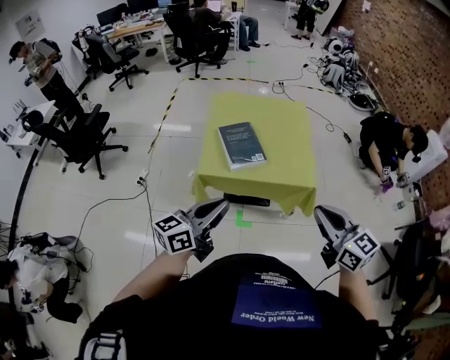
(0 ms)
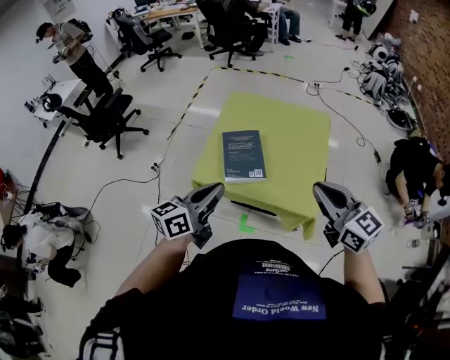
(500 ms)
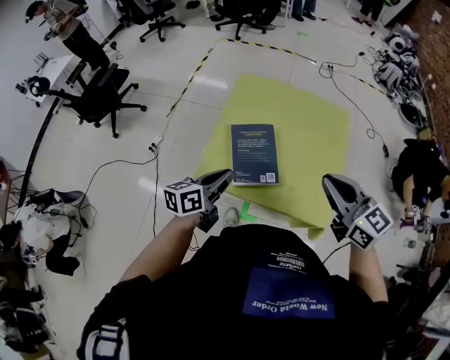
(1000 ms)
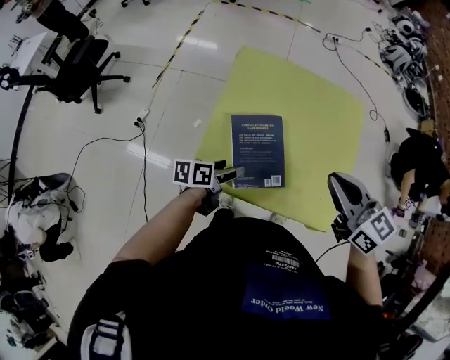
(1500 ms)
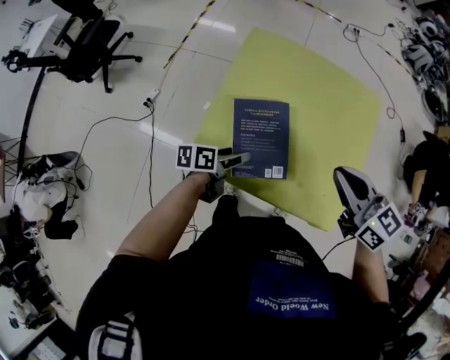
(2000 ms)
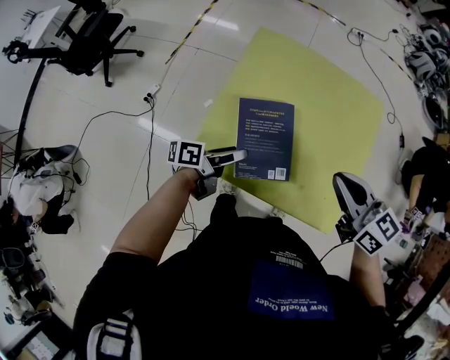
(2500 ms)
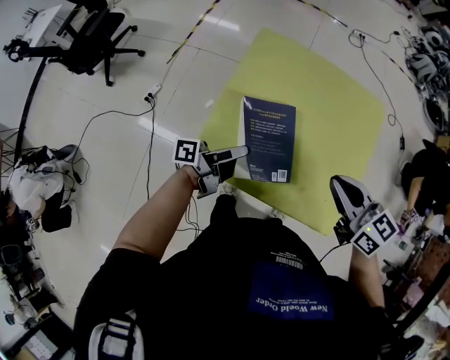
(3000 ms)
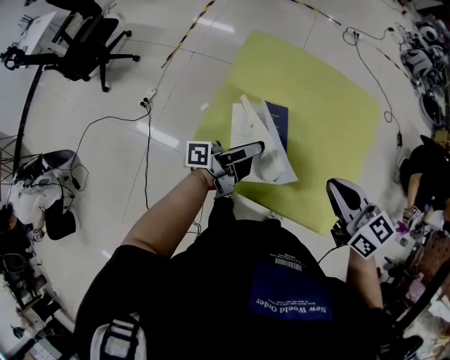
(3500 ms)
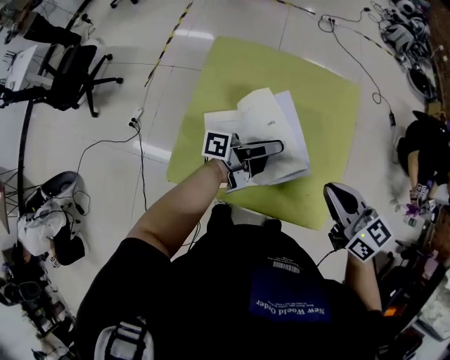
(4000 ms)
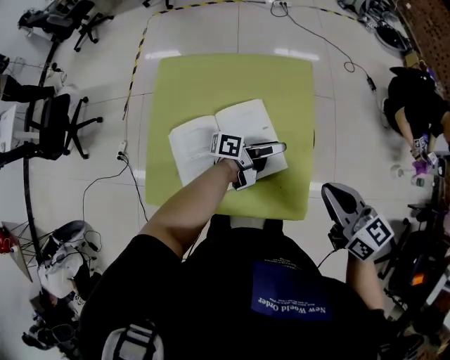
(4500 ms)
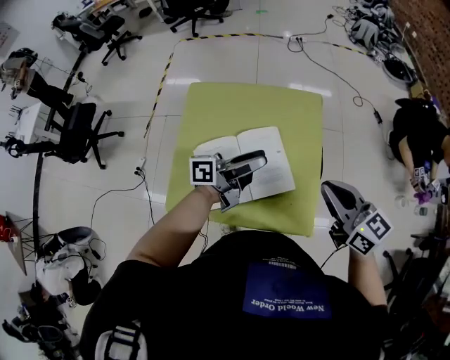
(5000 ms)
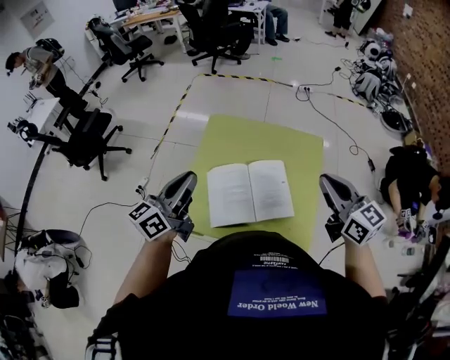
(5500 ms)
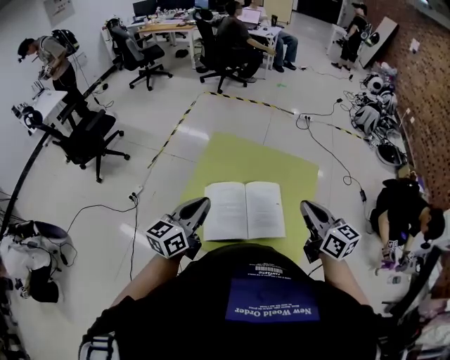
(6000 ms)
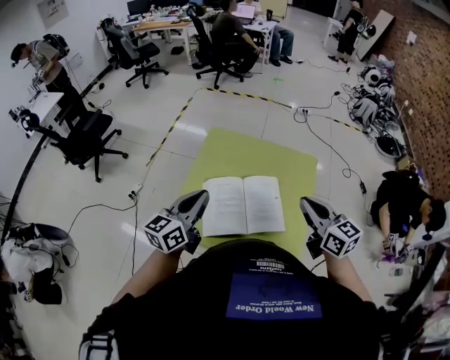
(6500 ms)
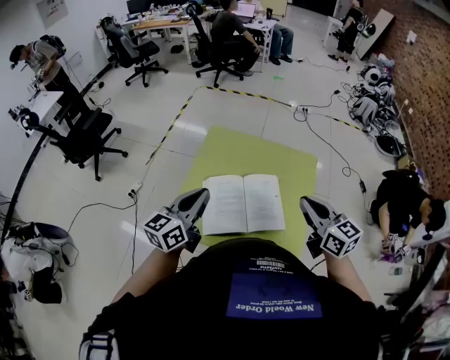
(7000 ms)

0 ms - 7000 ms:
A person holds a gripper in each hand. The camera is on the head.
0 ms - 2000 ms: The right gripper moves forward, approximately 40 cm, and rotates approximately 30 degrees. The left gripper travels forward and downward by approximately 40 cm, tilts its fingers about 30 degrees downward, and opens.
2000 ms - 3500 ms: The left gripper is displaced upward by roughly 10 cm, and tips its fingers upward by roughly 50 degrees.
3500 ms - 5000 ms: The left gripper heads to the right and upward, covering roughly 20 cm, and changes its angle by approximately 20 degrees, while the right gripper goes some 15 cm to the right.
5000 ms - 7000 ms: The right gripper travels to the left by about 5 cm; the left gripper moves to the left and upward, approximately 20 cm, changes its angle by about 60 degrees, and closes up.

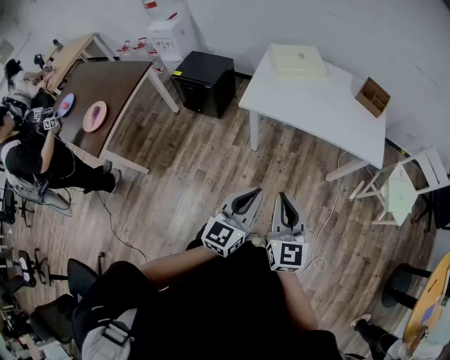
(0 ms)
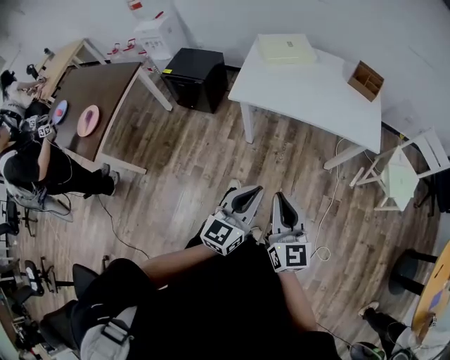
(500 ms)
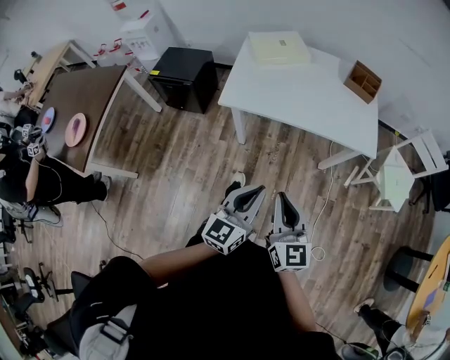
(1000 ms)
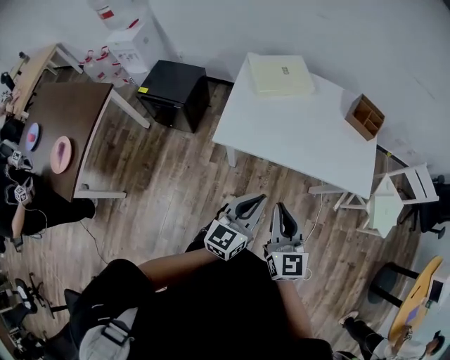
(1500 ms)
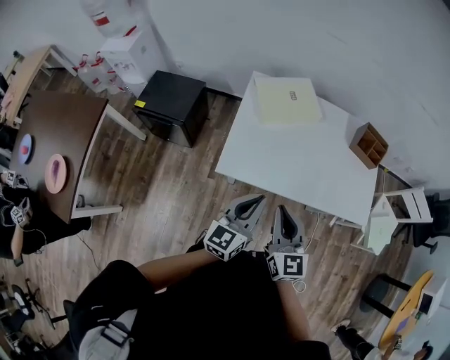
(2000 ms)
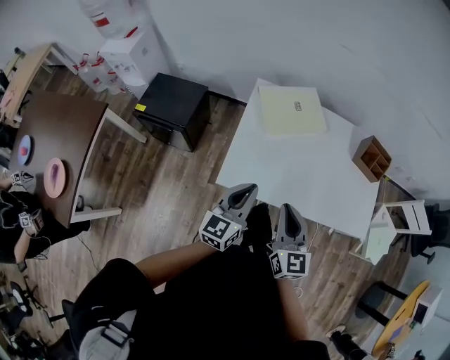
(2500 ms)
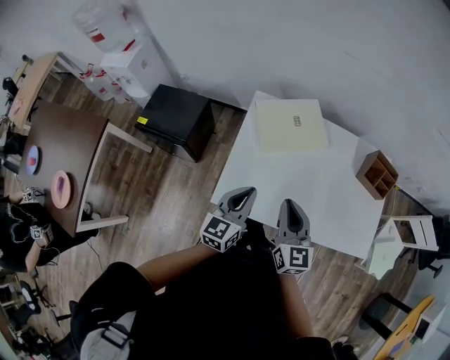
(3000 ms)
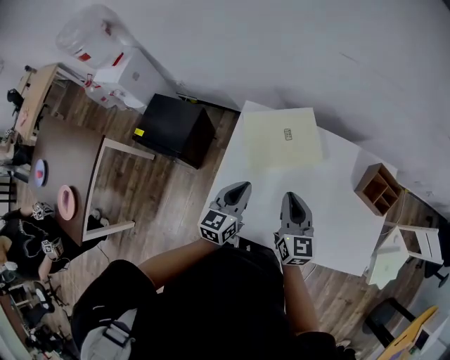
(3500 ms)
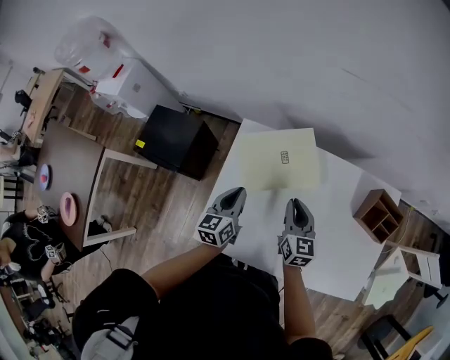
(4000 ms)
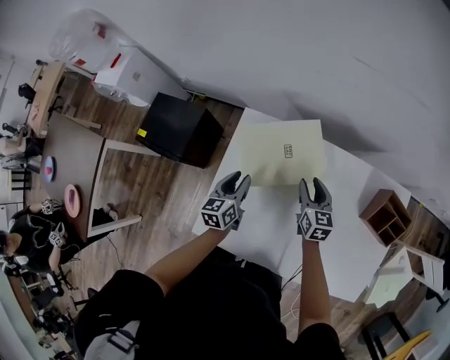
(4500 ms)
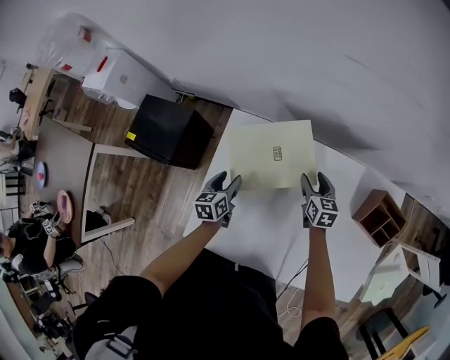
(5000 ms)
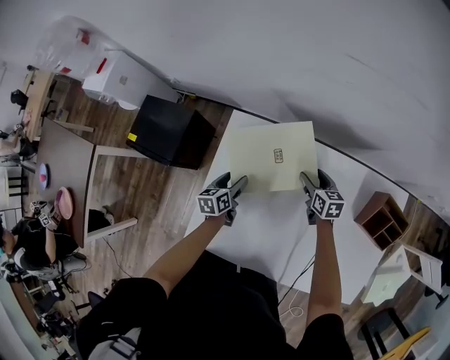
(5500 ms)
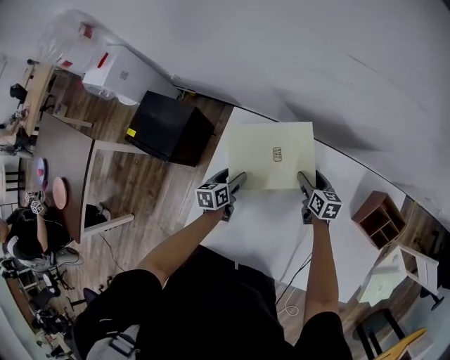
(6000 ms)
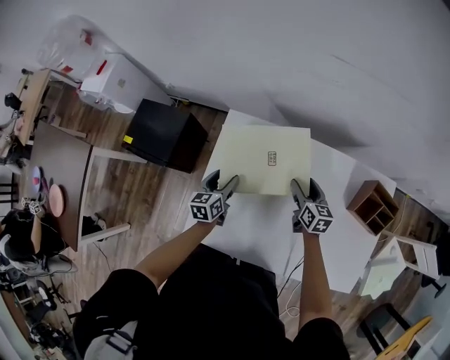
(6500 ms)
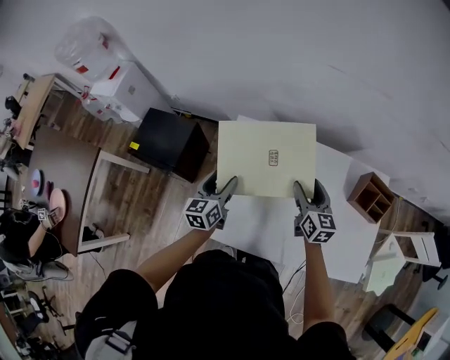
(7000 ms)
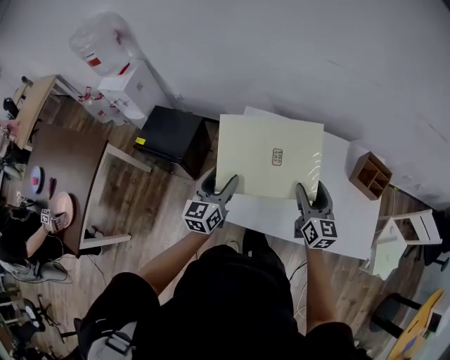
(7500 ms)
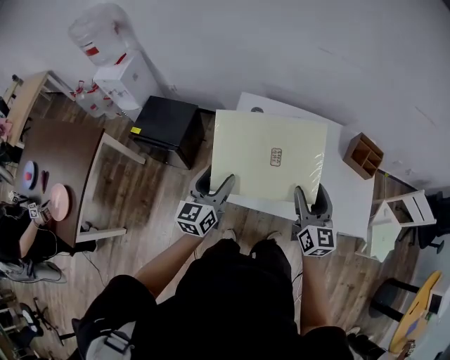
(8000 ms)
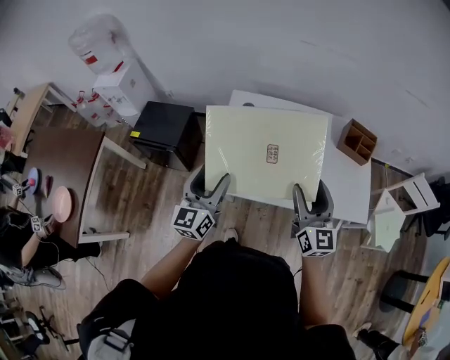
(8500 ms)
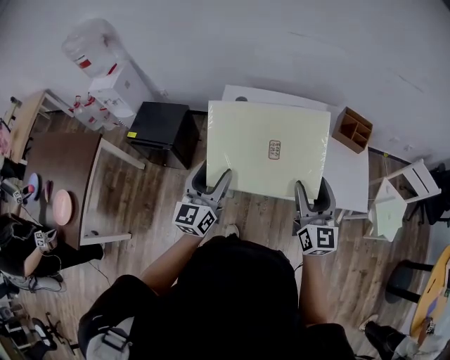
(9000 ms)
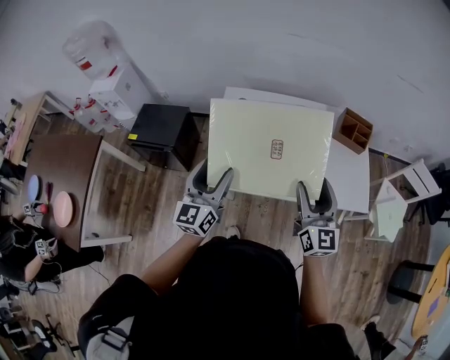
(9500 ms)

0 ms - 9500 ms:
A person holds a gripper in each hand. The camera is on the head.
0 ms - 2000 ms: The grippers both shift forward by approximately 35 cm.
2000 ms - 4000 ms: The two grippers go approximately 40 cm forward. The left gripper swivels about 30 degrees.
4000 ms - 5500 ms: The right gripper moves downward, forward and to the right, about 25 cm, changes its angle by some 20 degrees, and opens up, while the left gripper shifts approximately 15 cm downward, swivels approximately 20 degrees, and opens its fingers.
5500 ms - 7500 ms: The grippers both shift upward and backward by roughly 35 cm. The right gripper changes its angle by roughly 40 degrees, while the left gripper tips its fingers upward by approximately 30 degrees.
7500 ms - 9500 ms: The two grippers go some 20 cm backward and upward.

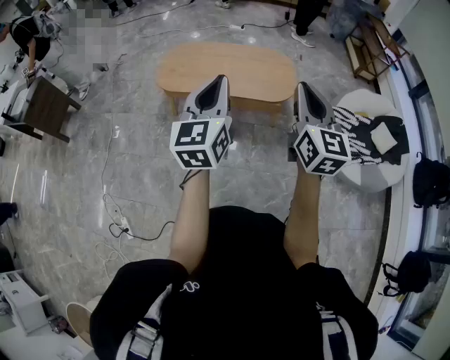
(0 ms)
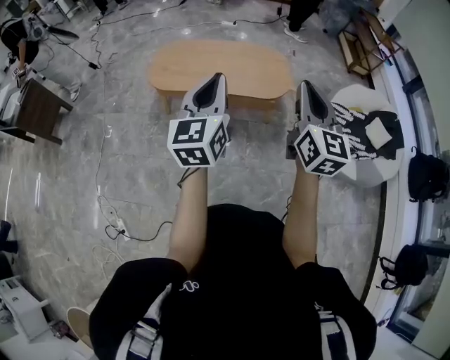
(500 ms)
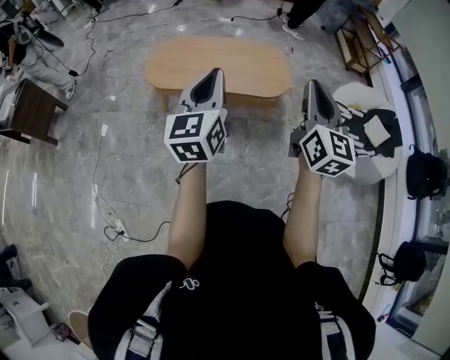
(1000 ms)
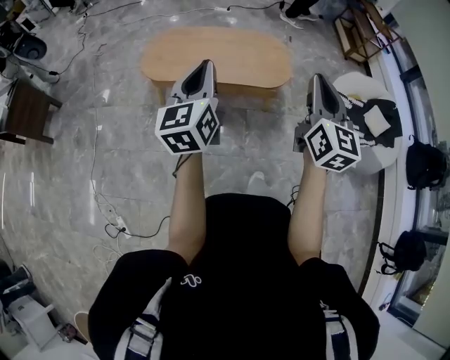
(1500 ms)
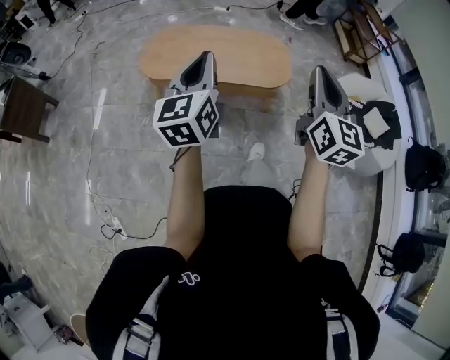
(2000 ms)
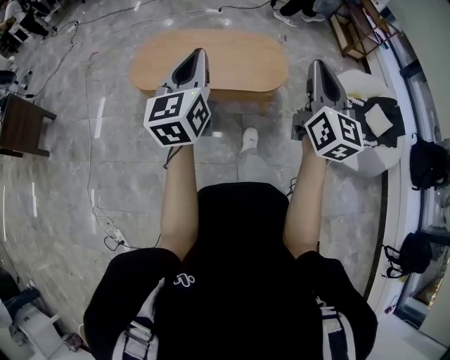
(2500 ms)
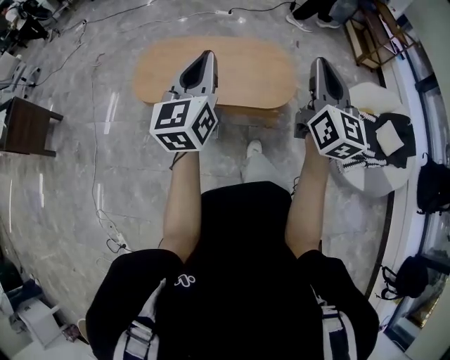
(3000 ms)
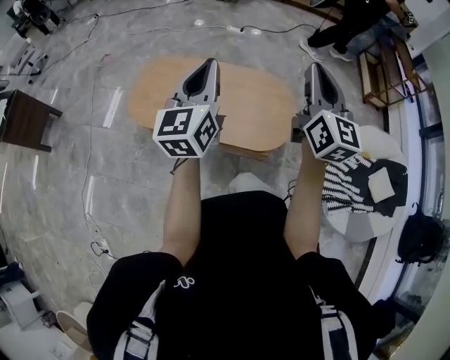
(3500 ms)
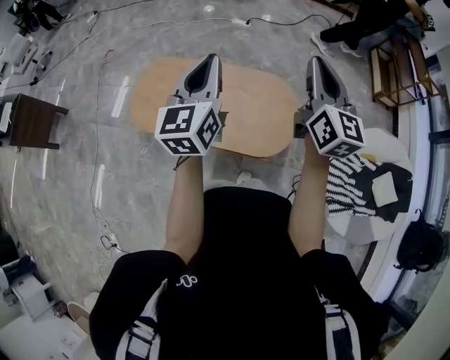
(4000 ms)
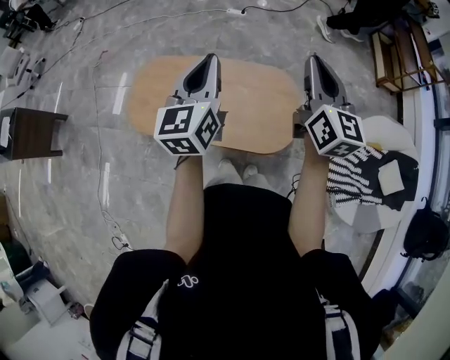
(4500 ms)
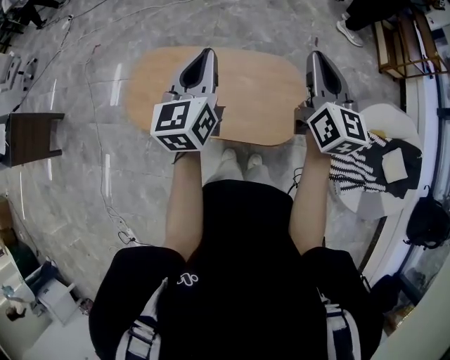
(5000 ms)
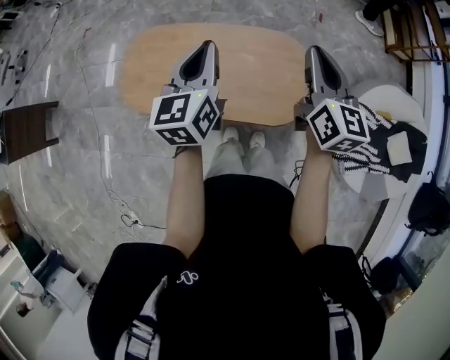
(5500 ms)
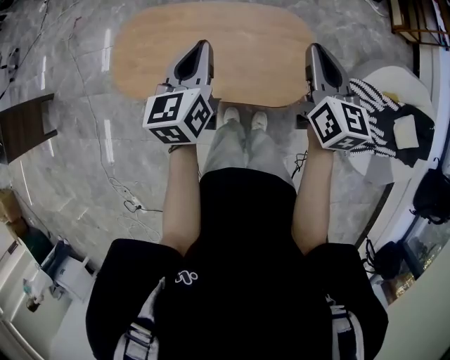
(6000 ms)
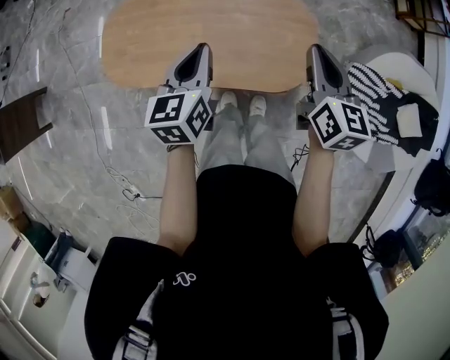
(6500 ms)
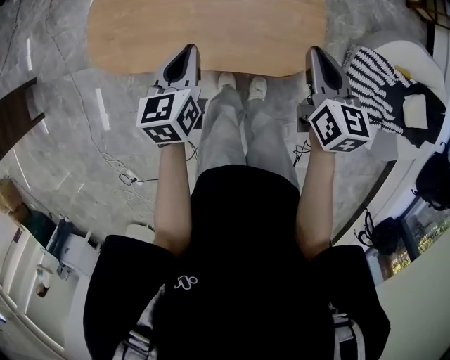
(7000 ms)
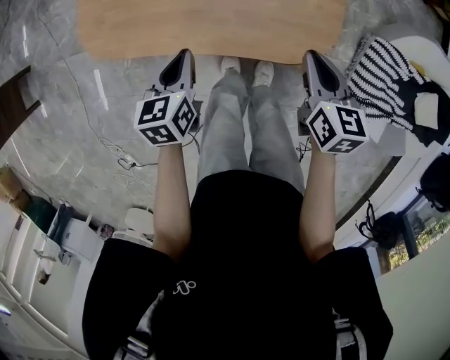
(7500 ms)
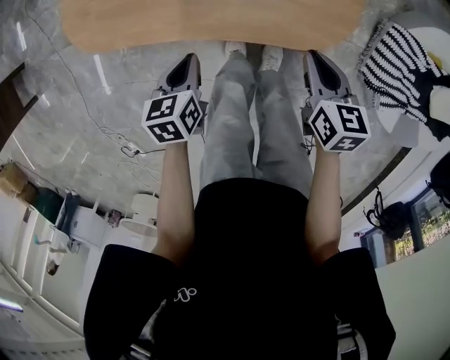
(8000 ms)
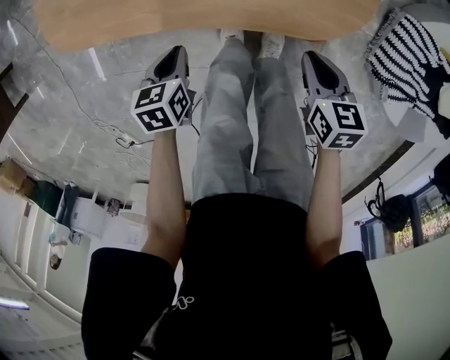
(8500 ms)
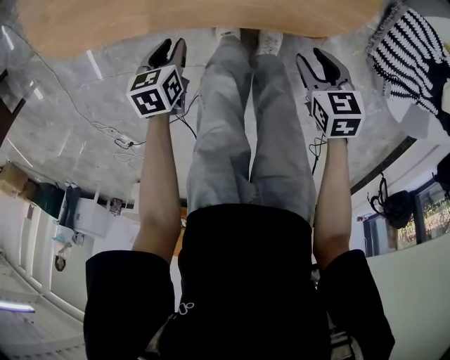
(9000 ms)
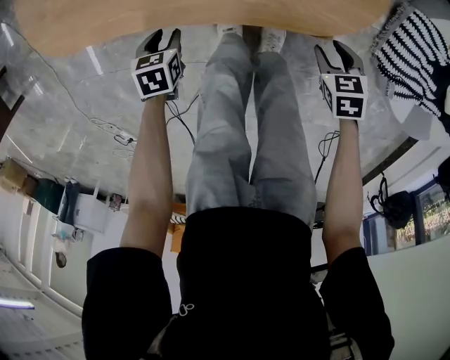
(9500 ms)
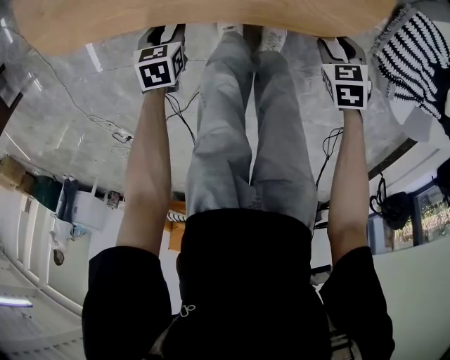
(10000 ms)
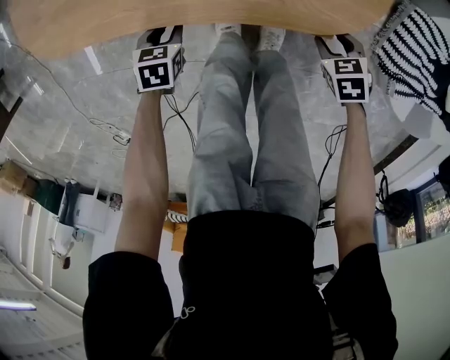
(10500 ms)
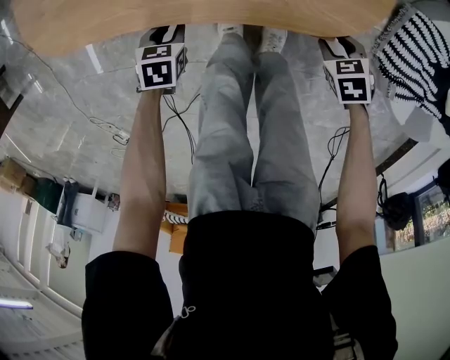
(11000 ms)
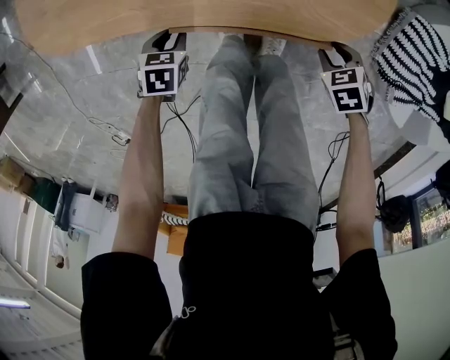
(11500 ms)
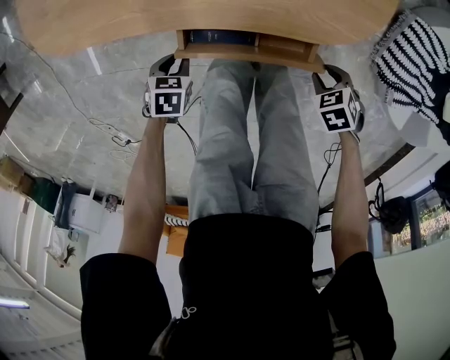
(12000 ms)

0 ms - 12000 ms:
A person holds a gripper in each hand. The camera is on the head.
0 ms - 2000 ms: The right gripper changes place by roughly 5 cm, while the left gripper heads to the left and forward, covering approximately 10 cm.
2000 ms - 4000 ms: The pair of grippers is taken forward, roughly 50 cm.
4000 ms - 6000 ms: Both grippers move downward, approximately 20 cm. The left gripper rotates about 20 degrees. The right gripper turns by about 20 degrees.
6000 ms - 8000 ms: The left gripper travels downward and backward by some 40 cm, and tilts its fingers roughly 40 degrees downward; the right gripper is displaced downward by about 35 cm, and turns by some 30 degrees.
8000 ms - 10000 ms: Both grippers travel together downward, approximately 25 cm. The left gripper opens up, while the right gripper changes its angle by roughly 40 degrees, and opens its fingers.
10000 ms - 12000 ms: The left gripper changes place by approximately 10 cm; the right gripper changes place by approximately 10 cm.
